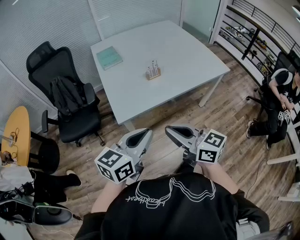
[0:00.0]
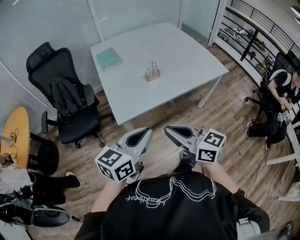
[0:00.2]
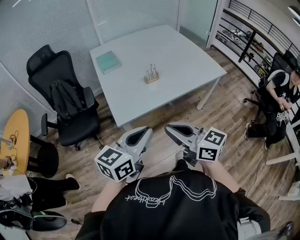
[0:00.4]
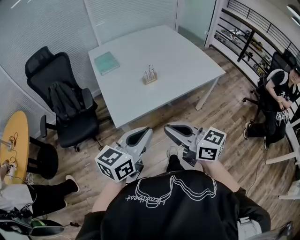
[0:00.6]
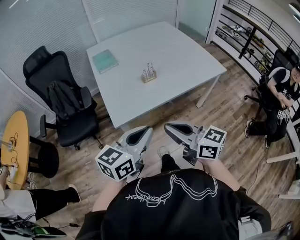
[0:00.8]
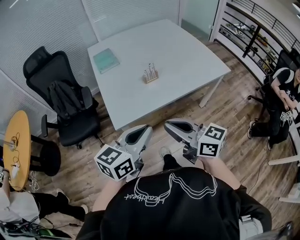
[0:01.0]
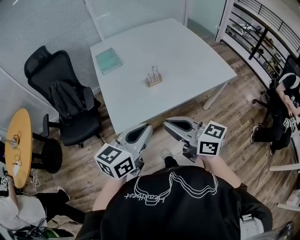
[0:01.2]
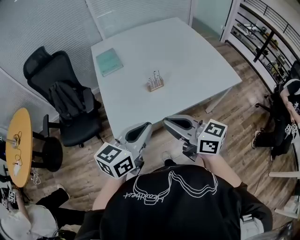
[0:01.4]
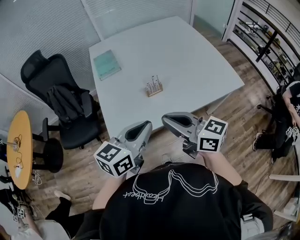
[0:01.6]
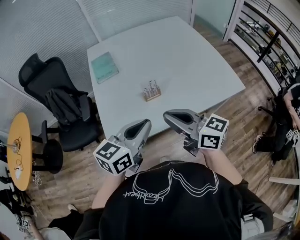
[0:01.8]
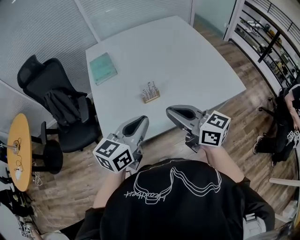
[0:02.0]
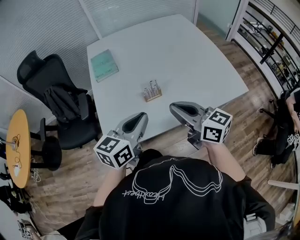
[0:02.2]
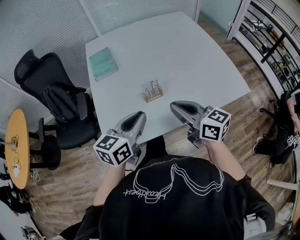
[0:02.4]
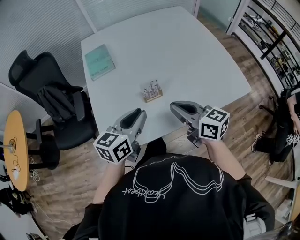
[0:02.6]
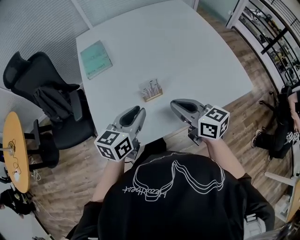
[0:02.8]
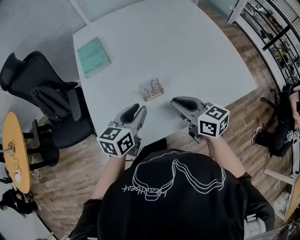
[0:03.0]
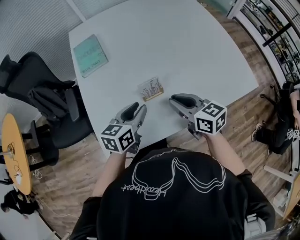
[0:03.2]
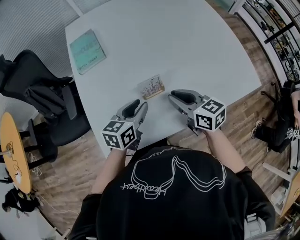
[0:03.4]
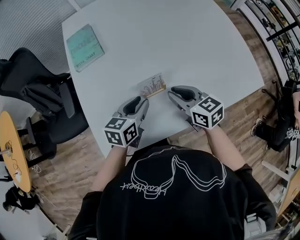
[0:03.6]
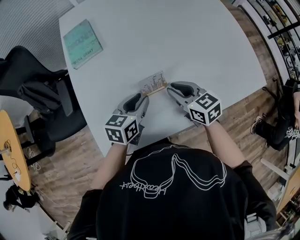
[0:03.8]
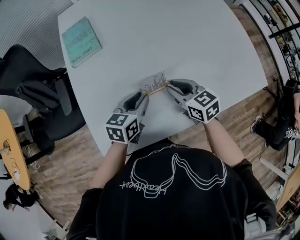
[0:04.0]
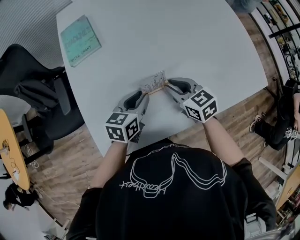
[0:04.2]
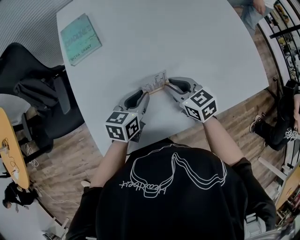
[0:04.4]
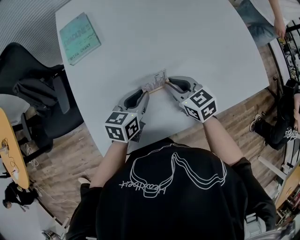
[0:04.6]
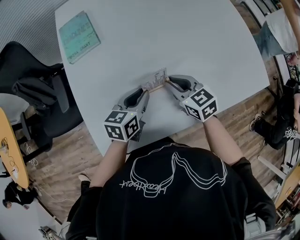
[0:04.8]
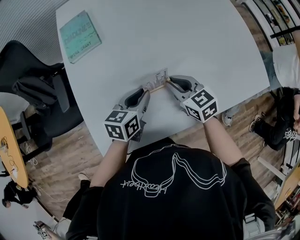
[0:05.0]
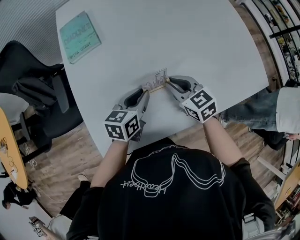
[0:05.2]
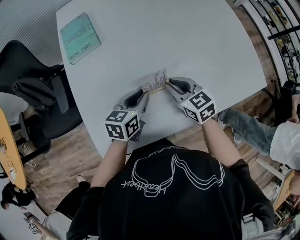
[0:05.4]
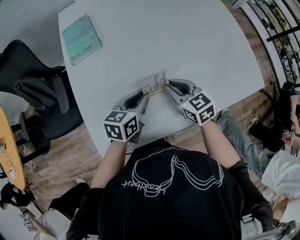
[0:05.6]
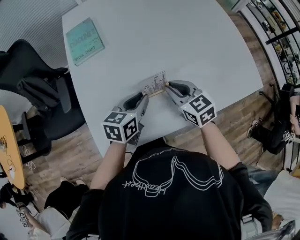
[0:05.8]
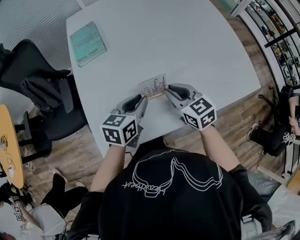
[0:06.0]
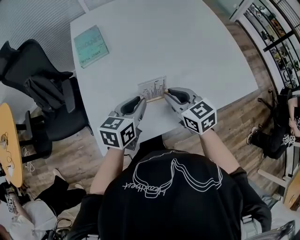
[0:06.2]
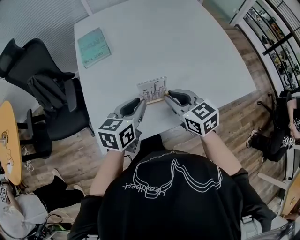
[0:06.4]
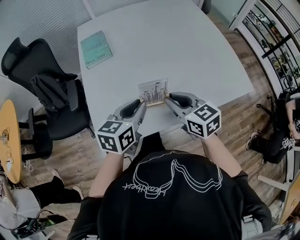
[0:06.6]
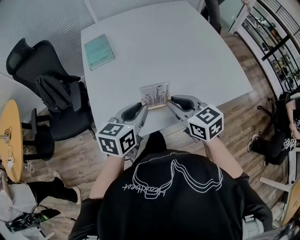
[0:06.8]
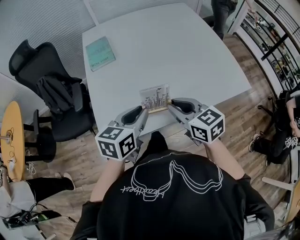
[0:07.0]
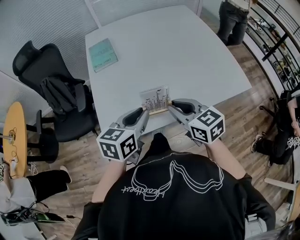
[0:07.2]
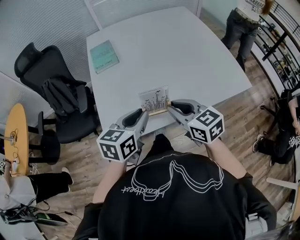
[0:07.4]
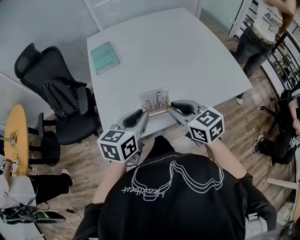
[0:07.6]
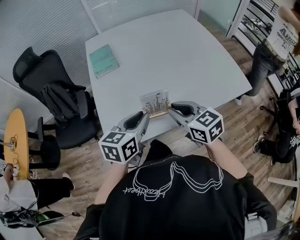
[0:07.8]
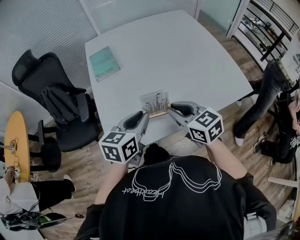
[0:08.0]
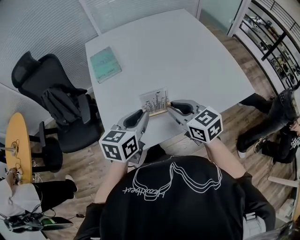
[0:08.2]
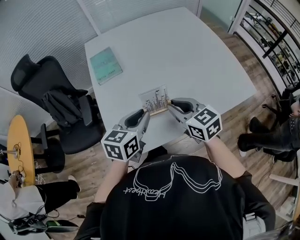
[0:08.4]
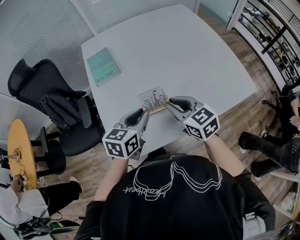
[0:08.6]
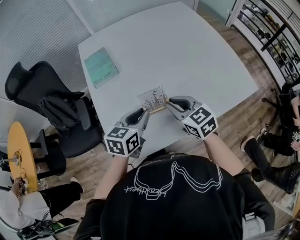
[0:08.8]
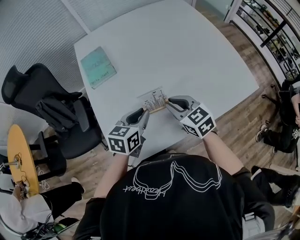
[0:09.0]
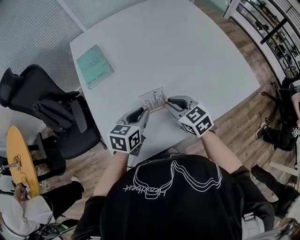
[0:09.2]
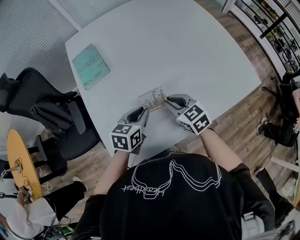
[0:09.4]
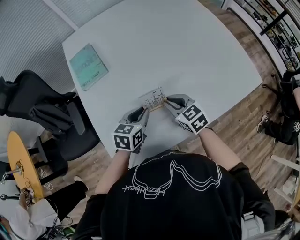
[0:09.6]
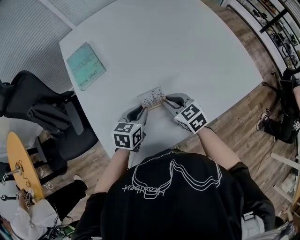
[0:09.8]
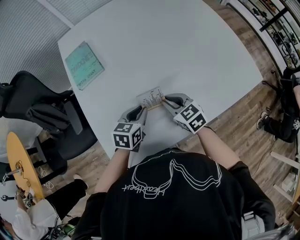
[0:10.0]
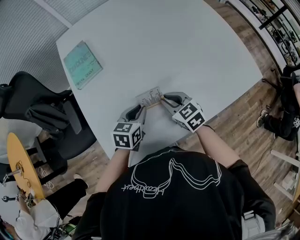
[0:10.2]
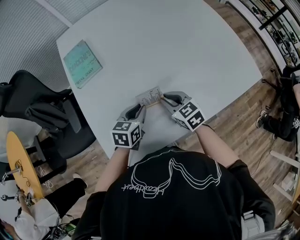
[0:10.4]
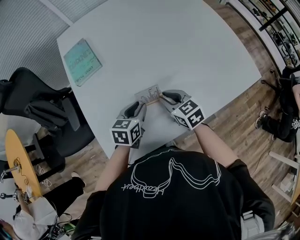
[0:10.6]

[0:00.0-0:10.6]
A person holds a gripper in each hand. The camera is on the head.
0:00.0 to 0:01.6: The grippers both shift forward by approximately 20 cm.
0:01.6 to 0:03.0: The two grippers go roughly 25 cm forward and downward.
0:03.0 to 0:04.6: Both grippers move downward and forward, some 15 cm. The right gripper swivels some 20 degrees.
0:04.6 to 0:06.0: Both grippers travel together upward, roughly 5 cm.
0:06.0 to 0:07.6: Both grippers move backward and upward, some 20 cm.
0:07.6 to 0:09.0: Both grippers travel together forward and downward, some 15 cm.
0:09.0 to 0:10.6: Both grippers travel together downward, some 10 cm.

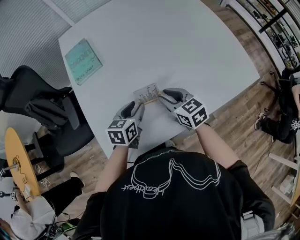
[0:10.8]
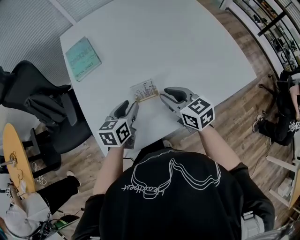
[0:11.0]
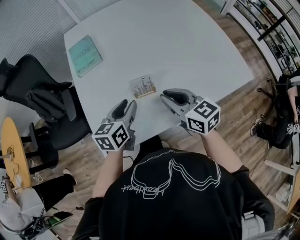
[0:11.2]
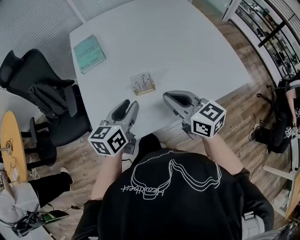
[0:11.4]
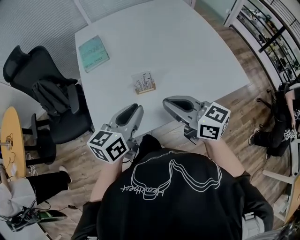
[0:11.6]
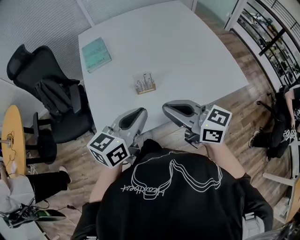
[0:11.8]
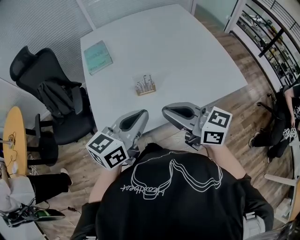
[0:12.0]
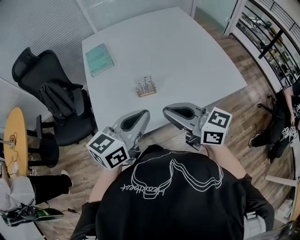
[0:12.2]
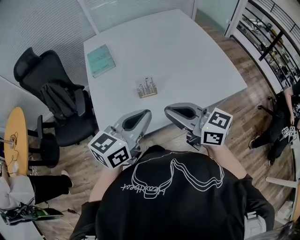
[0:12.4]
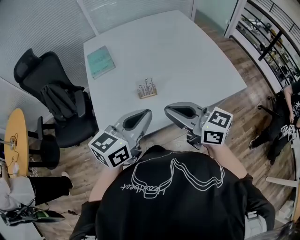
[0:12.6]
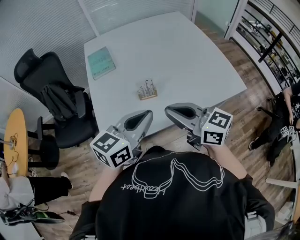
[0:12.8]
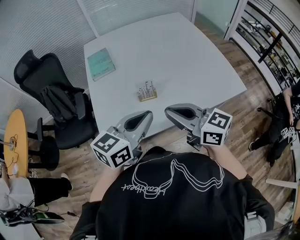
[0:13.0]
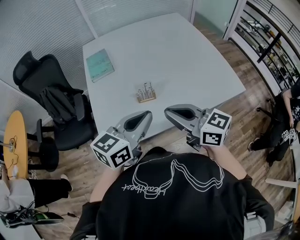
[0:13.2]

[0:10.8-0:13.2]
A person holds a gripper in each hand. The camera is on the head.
0:10.8 to 0:12.0: The grippers both shift upward and backward by some 30 cm. The right gripper rotates about 40 degrees, and closes its fingers. Meanwhile the left gripper swivels roughly 30 degrees, and closes up.
0:12.0 to 0:13.2: The grippers move only a little.

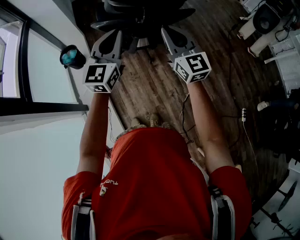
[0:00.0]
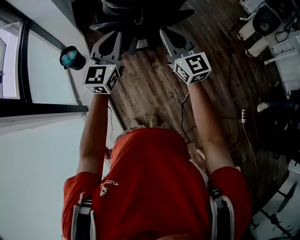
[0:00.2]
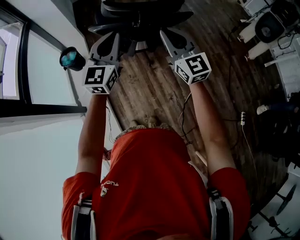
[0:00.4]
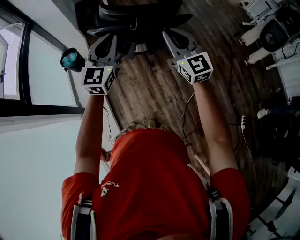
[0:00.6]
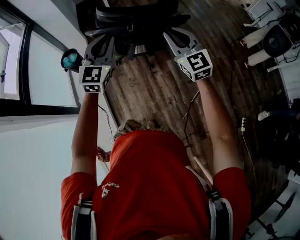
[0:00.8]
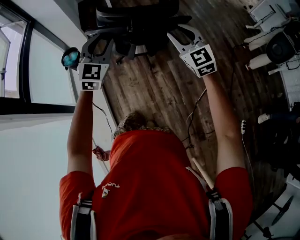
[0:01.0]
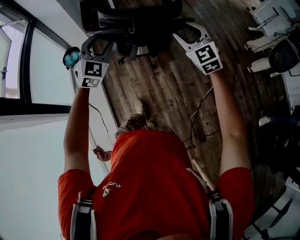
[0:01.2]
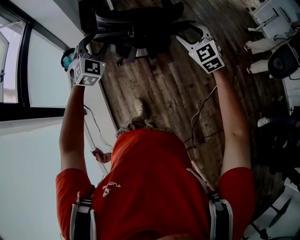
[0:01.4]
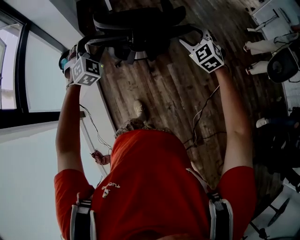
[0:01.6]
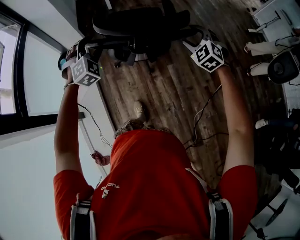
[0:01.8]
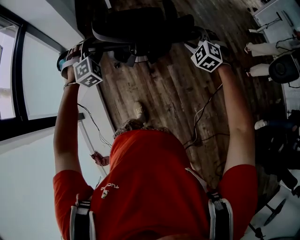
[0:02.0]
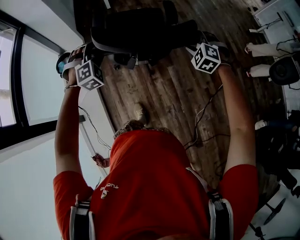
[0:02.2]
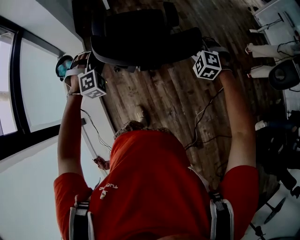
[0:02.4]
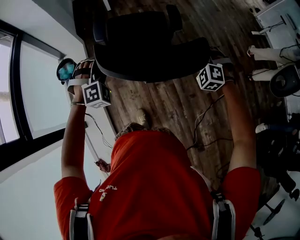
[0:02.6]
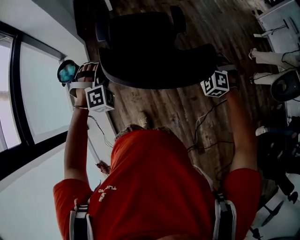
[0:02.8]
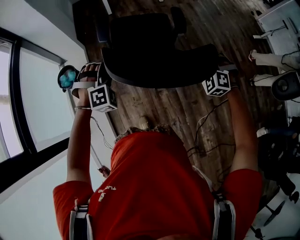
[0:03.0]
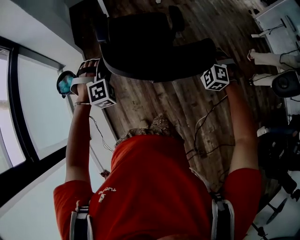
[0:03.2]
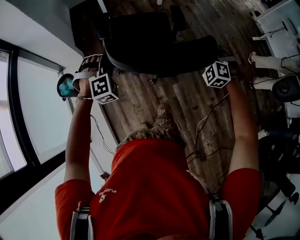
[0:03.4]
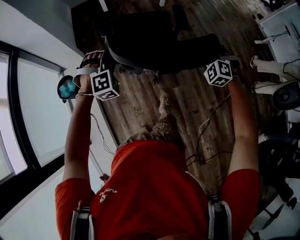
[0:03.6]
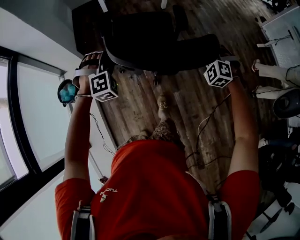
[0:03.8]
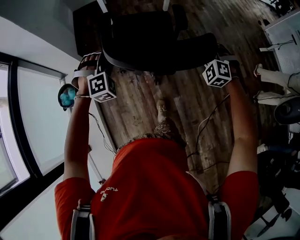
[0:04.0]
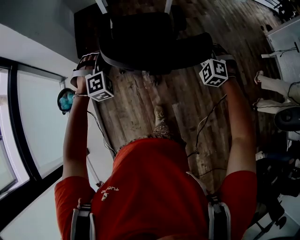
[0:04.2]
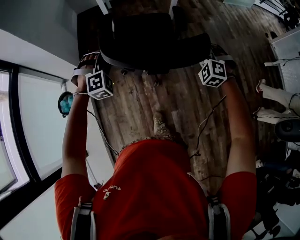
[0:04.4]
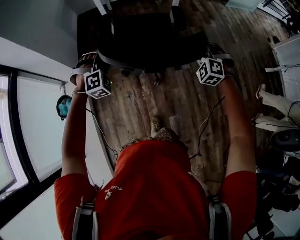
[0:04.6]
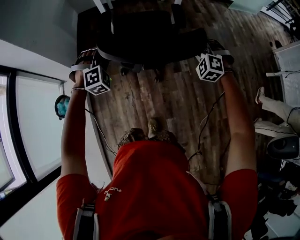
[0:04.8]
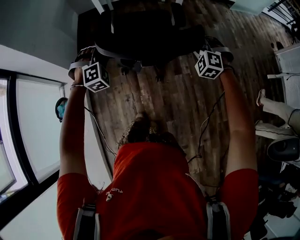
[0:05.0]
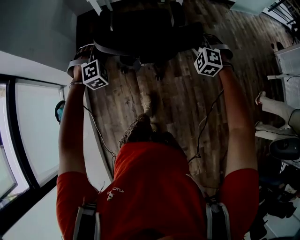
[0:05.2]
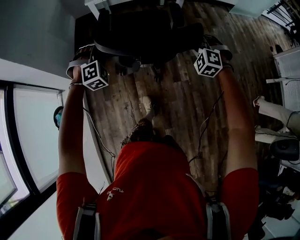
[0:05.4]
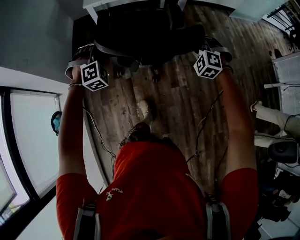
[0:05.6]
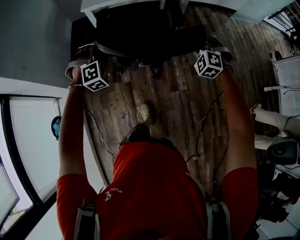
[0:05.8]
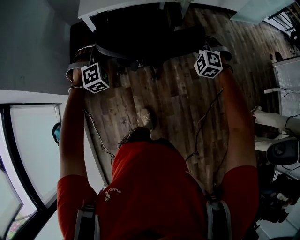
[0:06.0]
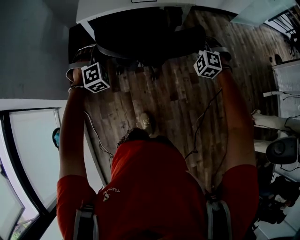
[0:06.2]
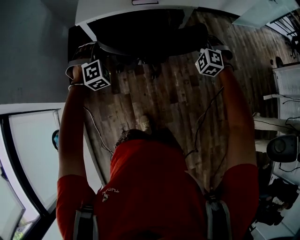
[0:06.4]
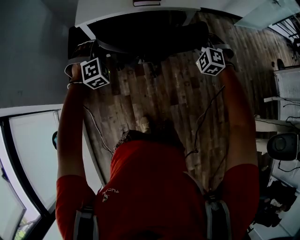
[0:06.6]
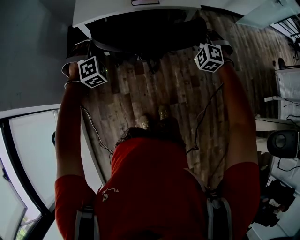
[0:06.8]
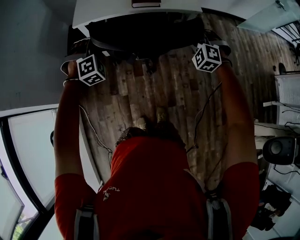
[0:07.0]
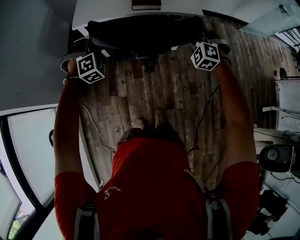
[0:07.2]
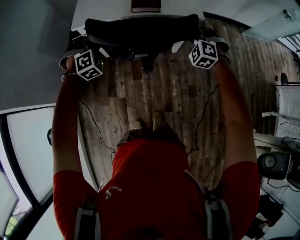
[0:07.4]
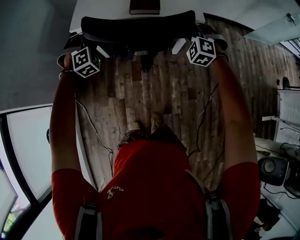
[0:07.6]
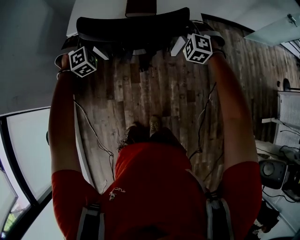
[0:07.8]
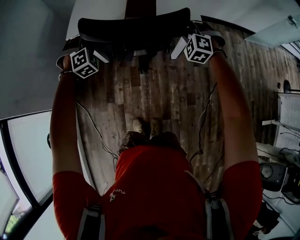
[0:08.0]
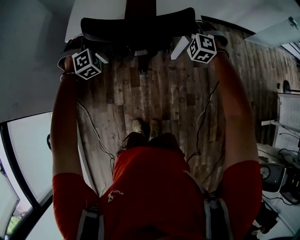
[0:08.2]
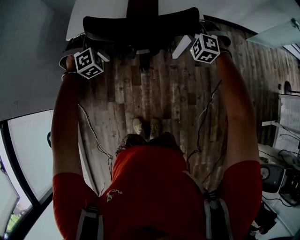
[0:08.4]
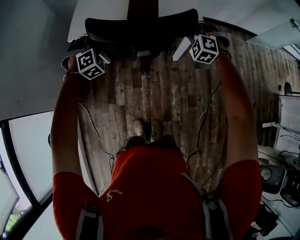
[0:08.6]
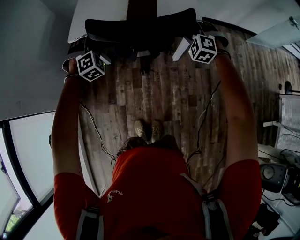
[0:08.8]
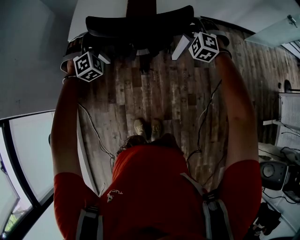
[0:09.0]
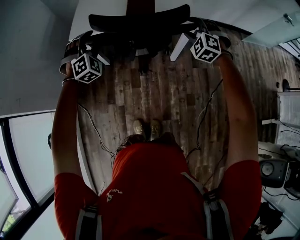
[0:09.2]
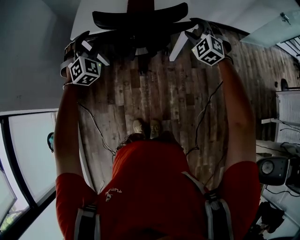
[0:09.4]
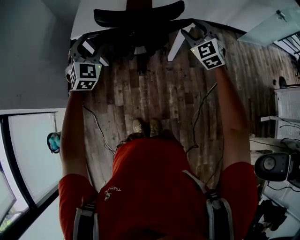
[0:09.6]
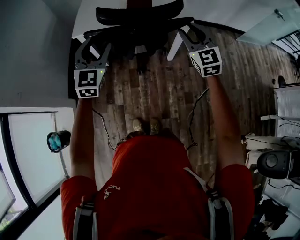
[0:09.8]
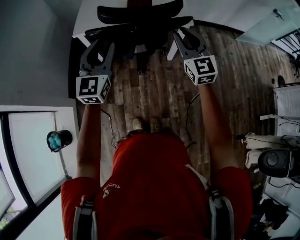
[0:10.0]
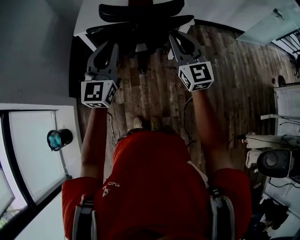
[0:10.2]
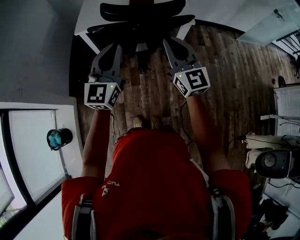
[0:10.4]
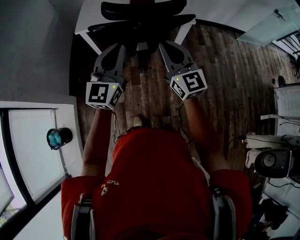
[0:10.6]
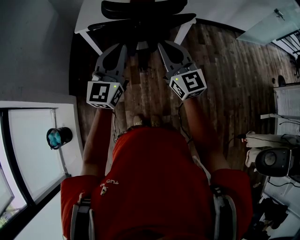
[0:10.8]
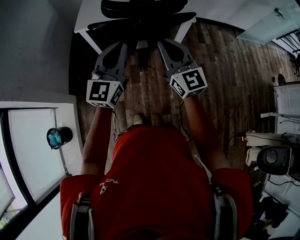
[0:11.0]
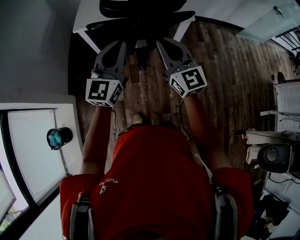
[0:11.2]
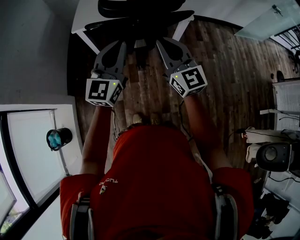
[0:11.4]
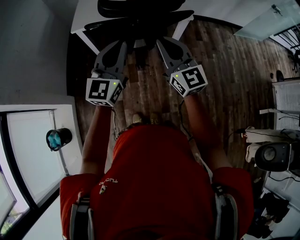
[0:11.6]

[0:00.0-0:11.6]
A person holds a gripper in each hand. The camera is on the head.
0:00.0 to 0:01.4: The left gripper heads forward and downward, covering about 15 cm, changes its angle by some 50 degrees, and opens; the right gripper heads to the right, forward and downward, covering about 20 cm, changes its angle by some 40 degrees, and opens.
0:01.4 to 0:02.8: Both grippers travel together forward and downward, some 15 cm. The right gripper turns by roughly 40 degrees, and closes up. Meanwhile the left gripper swivels approximately 30 degrees, and closes up.
0:02.8 to 0:04.4: The grippers both shift forward by roughly 40 cm.
0:04.4 to 0:05.8: The two grippers go approximately 35 cm forward.
0:05.8 to 0:07.2: The grippers both shift forward by roughly 25 cm.
0:07.2 to 0:08.8: Both grippers move forward, roughly 10 cm. The right gripper opens its fingers, while the left gripper opens up.
0:08.8 to 0:10.2: The left gripper is displaced backward and upward by about 30 cm, points its fingers about 40 degrees further upward, and closes. The right gripper heads backward, upward and to the left, covering roughly 30 cm, points its fingers roughly 50 degrees further upward, and closes its fingers.
0:10.2 to 0:11.6: The right gripper travels to the left by about 5 cm.
